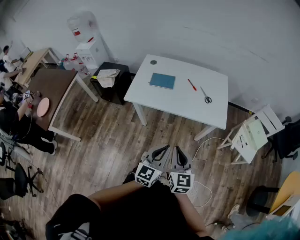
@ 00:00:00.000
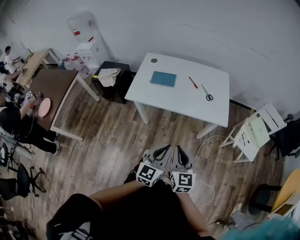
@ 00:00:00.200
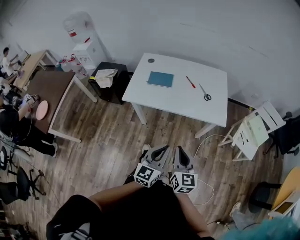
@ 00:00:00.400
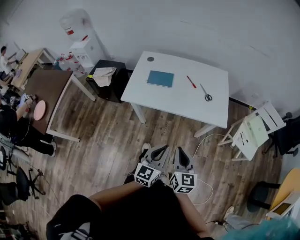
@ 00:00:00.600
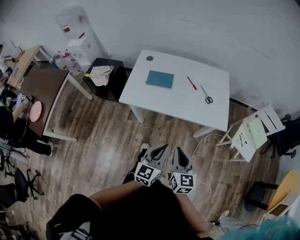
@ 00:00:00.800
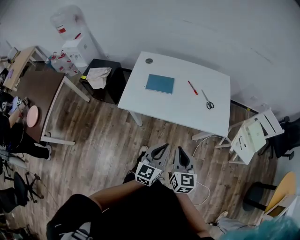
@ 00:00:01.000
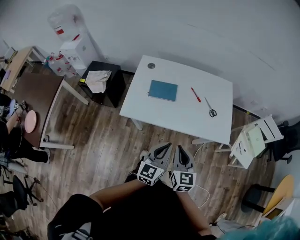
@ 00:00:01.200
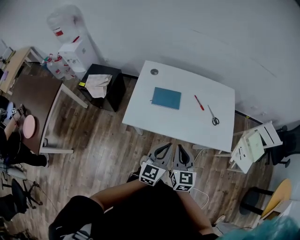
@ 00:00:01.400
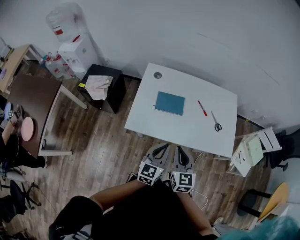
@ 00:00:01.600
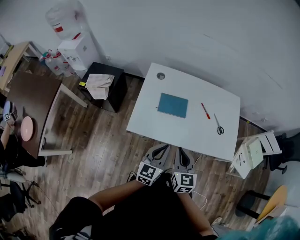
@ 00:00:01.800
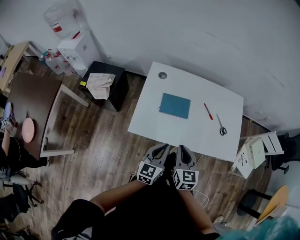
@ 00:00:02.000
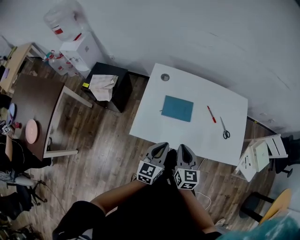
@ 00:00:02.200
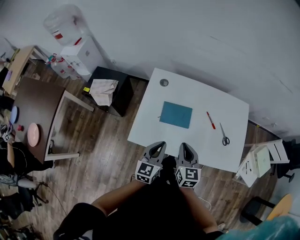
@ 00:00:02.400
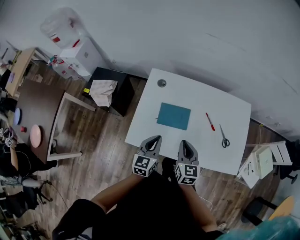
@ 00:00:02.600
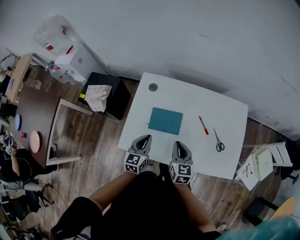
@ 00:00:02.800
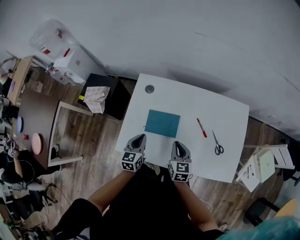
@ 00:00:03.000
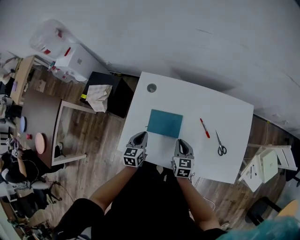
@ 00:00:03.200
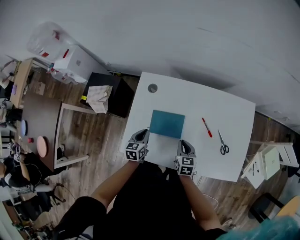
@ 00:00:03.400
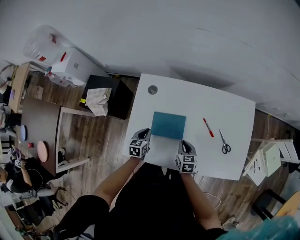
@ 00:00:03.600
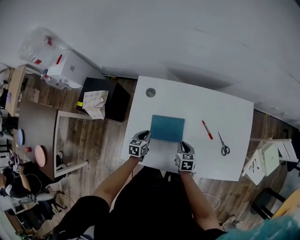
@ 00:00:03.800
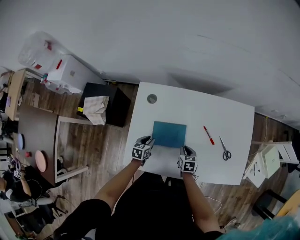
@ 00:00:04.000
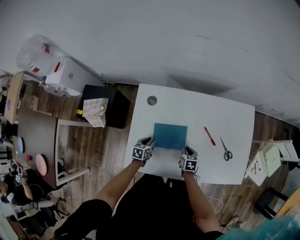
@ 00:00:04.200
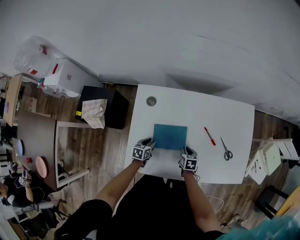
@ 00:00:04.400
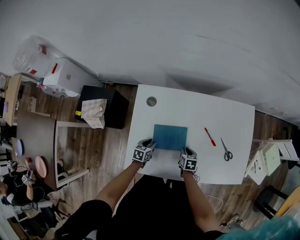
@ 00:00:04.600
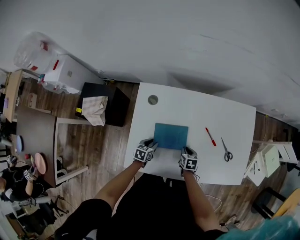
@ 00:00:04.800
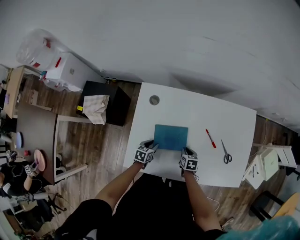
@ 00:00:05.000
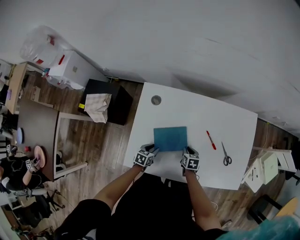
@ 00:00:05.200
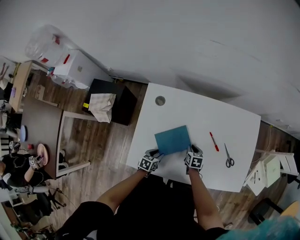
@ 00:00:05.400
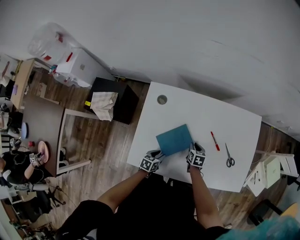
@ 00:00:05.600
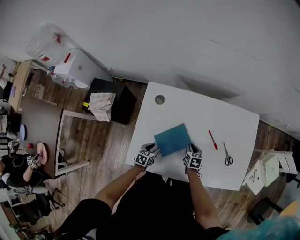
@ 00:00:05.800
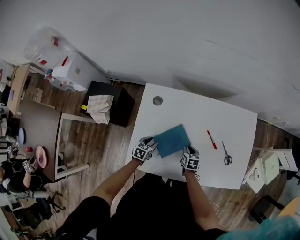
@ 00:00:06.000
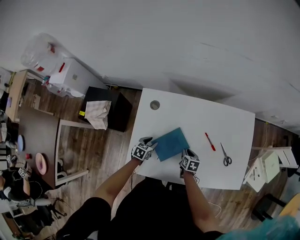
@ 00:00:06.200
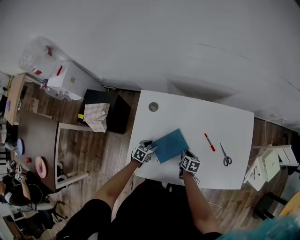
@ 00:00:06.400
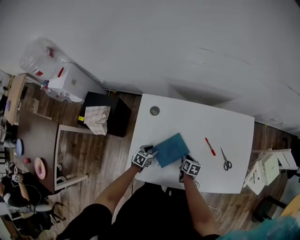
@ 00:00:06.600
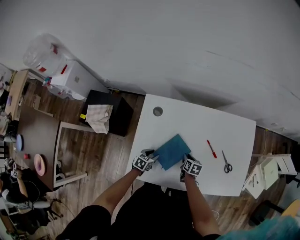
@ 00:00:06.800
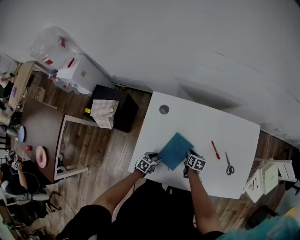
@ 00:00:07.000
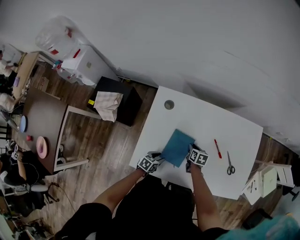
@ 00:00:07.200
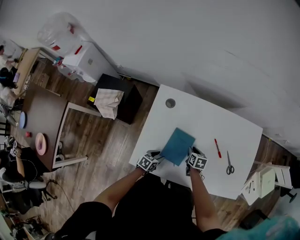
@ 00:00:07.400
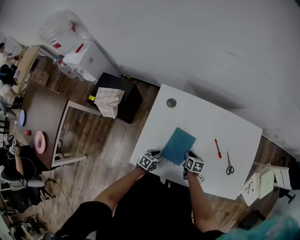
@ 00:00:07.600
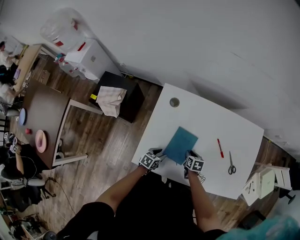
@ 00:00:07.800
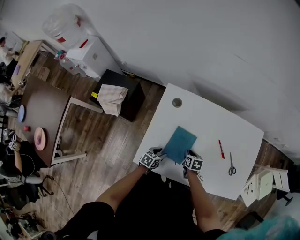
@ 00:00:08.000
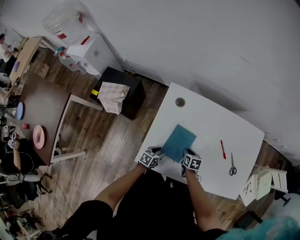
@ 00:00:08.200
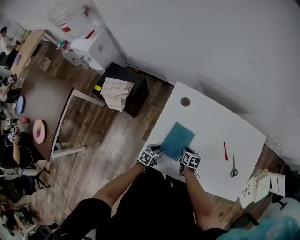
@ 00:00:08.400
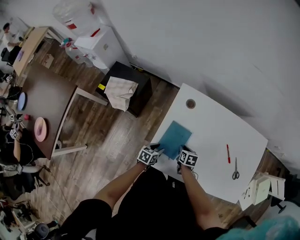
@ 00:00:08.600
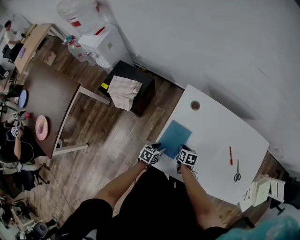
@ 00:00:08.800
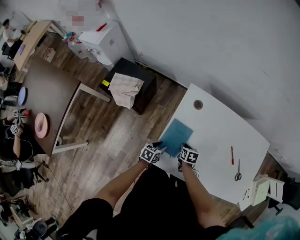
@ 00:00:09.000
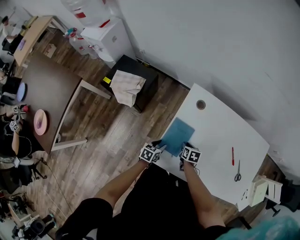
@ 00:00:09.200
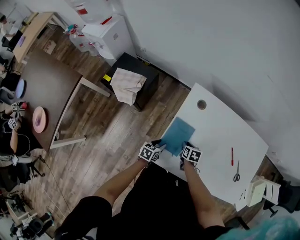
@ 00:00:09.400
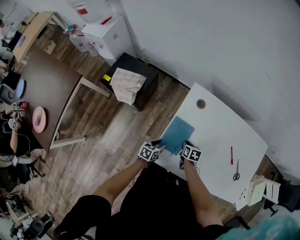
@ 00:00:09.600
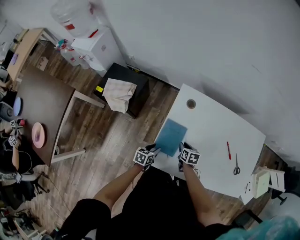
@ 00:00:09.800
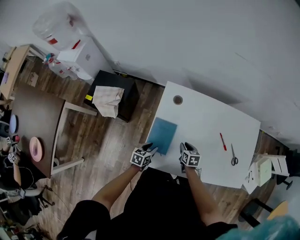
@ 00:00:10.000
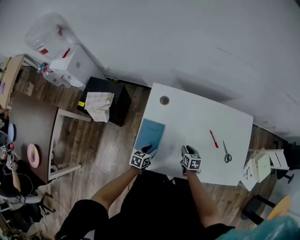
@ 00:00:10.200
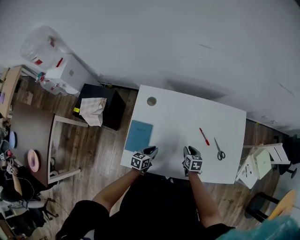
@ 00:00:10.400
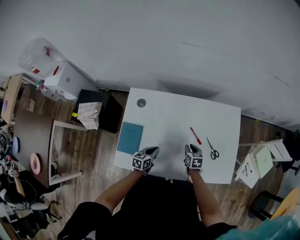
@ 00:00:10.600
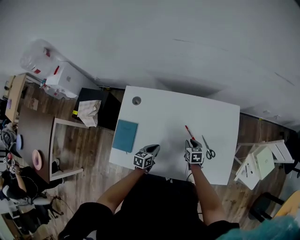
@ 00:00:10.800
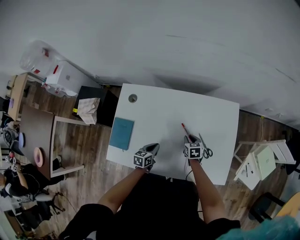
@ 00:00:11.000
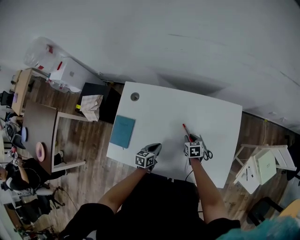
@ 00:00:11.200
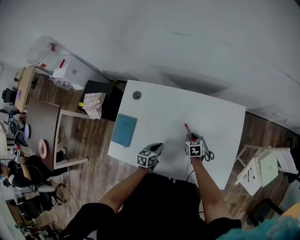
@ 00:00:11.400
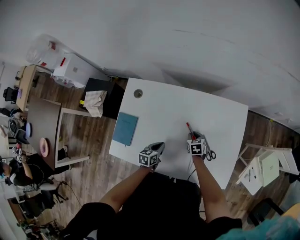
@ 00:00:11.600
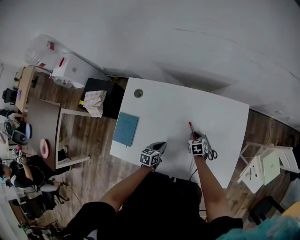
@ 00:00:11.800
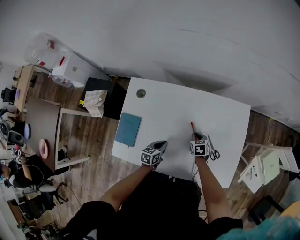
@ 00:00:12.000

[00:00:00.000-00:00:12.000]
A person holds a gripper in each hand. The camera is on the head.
00:00:00.000 to 00:00:01.600: The two grippers go roughly 30 cm forward and to the left.
00:00:01.600 to 00:00:03.000: Both grippers travel together forward and downward, some 25 cm. The left gripper rotates roughly 20 degrees.
00:00:03.000 to 00:00:04.400: The two grippers go roughly 20 cm downward. The right gripper rotates about 30 degrees; the left gripper turns by approximately 30 degrees, and opens up.
00:00:04.400 to 00:00:06.000: The left gripper reaches some 10 cm backward, then returns.
00:00:06.000 to 00:00:07.600: The left gripper moves backward, about 10 cm.
00:00:07.600 to 00:00:09.000: Both grippers move to the left, approximately 15 cm.
00:00:09.000 to 00:00:10.400: The left gripper moves to the right, about 15 cm, and closes; the right gripper moves to the right, approximately 25 cm.
00:00:10.400 to 00:00:12.000: The left gripper heads to the right, covering approximately 15 cm. Meanwhile the right gripper travels to the right, forward and downward by roughly 15 cm.

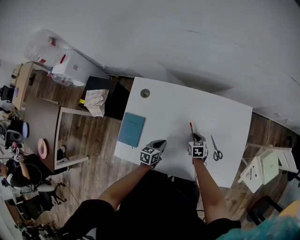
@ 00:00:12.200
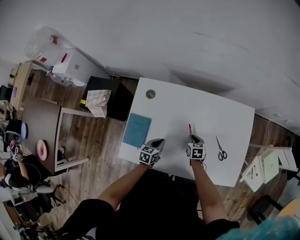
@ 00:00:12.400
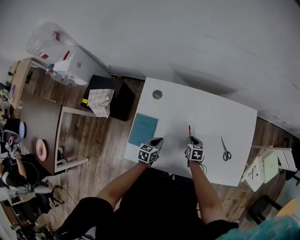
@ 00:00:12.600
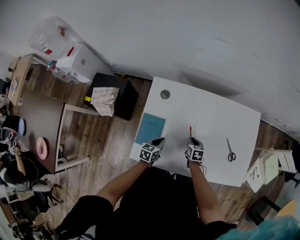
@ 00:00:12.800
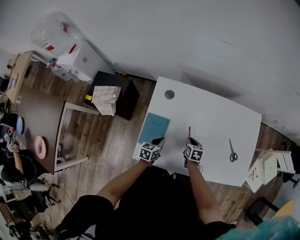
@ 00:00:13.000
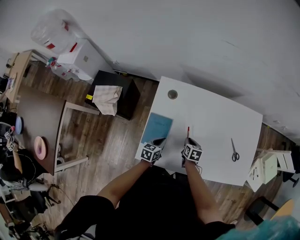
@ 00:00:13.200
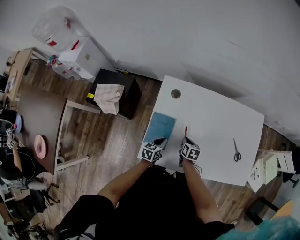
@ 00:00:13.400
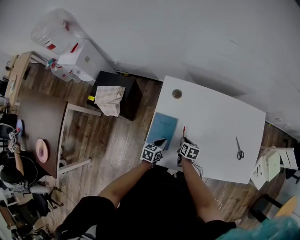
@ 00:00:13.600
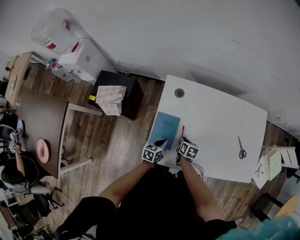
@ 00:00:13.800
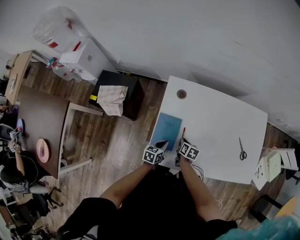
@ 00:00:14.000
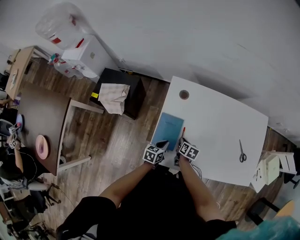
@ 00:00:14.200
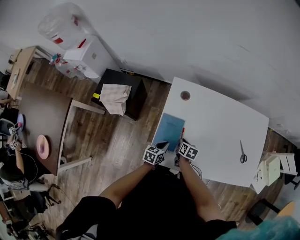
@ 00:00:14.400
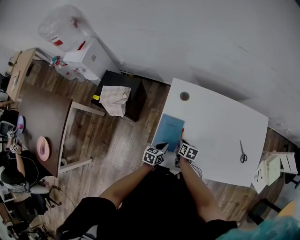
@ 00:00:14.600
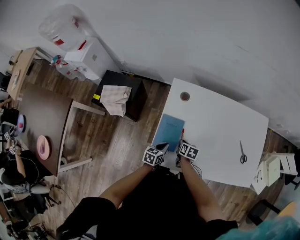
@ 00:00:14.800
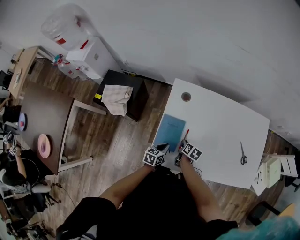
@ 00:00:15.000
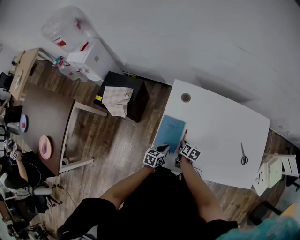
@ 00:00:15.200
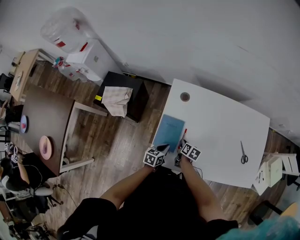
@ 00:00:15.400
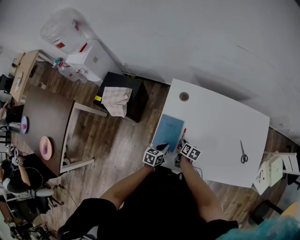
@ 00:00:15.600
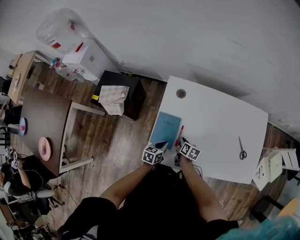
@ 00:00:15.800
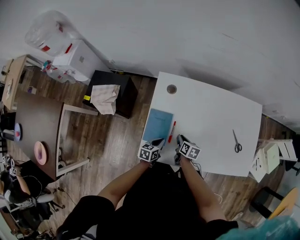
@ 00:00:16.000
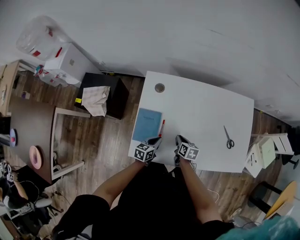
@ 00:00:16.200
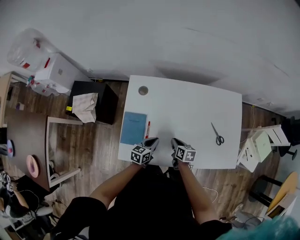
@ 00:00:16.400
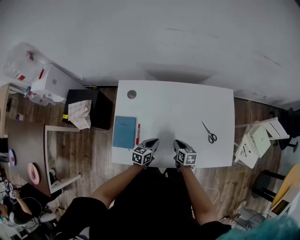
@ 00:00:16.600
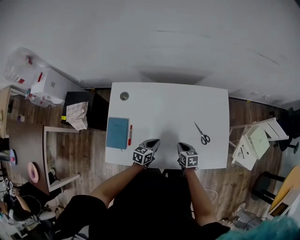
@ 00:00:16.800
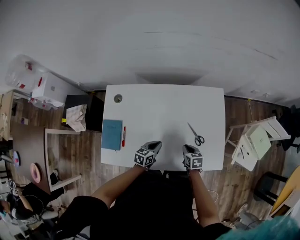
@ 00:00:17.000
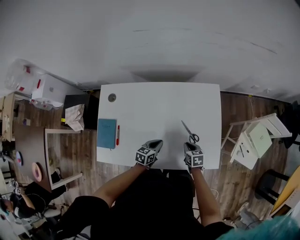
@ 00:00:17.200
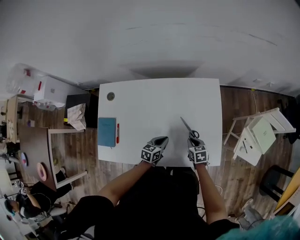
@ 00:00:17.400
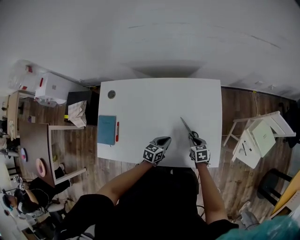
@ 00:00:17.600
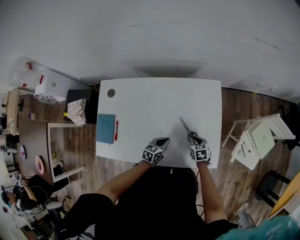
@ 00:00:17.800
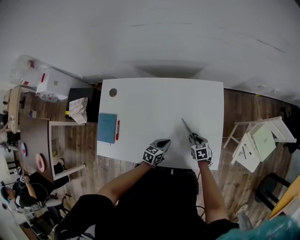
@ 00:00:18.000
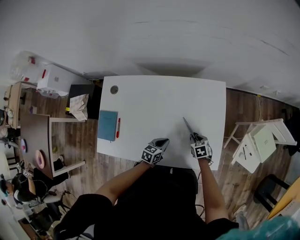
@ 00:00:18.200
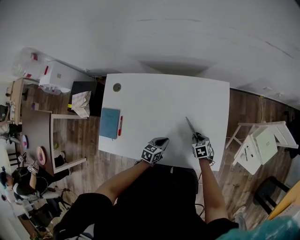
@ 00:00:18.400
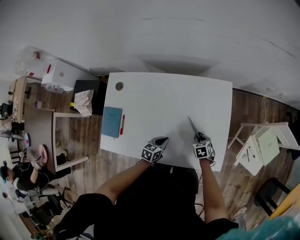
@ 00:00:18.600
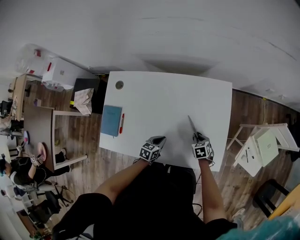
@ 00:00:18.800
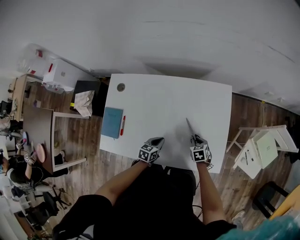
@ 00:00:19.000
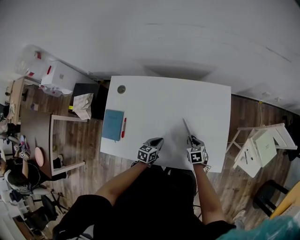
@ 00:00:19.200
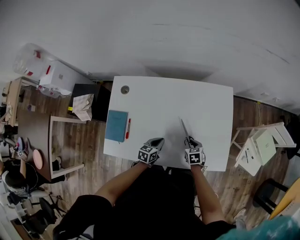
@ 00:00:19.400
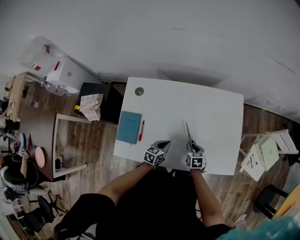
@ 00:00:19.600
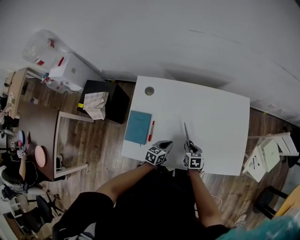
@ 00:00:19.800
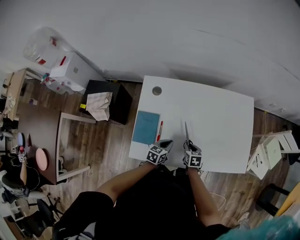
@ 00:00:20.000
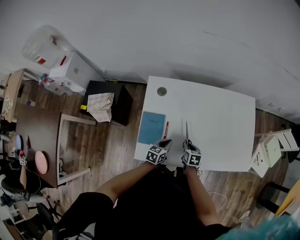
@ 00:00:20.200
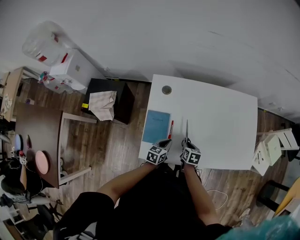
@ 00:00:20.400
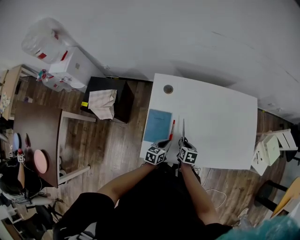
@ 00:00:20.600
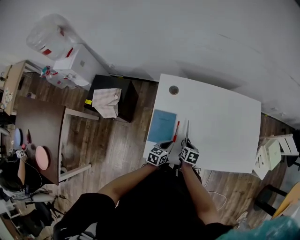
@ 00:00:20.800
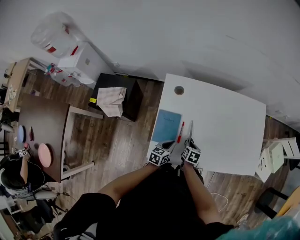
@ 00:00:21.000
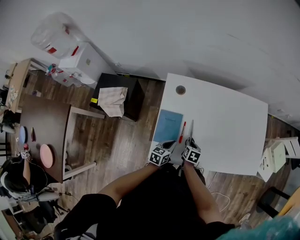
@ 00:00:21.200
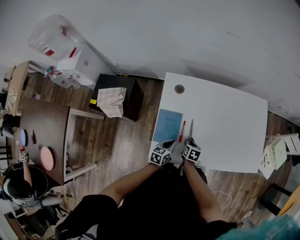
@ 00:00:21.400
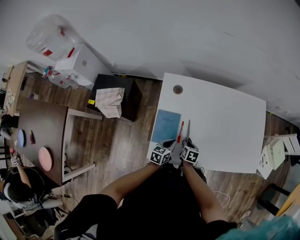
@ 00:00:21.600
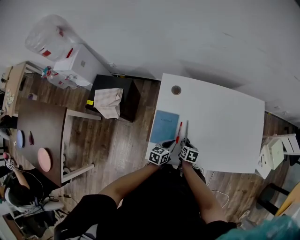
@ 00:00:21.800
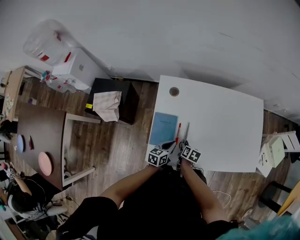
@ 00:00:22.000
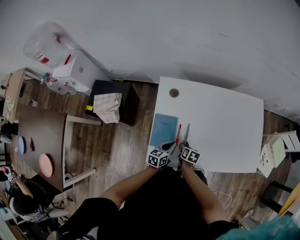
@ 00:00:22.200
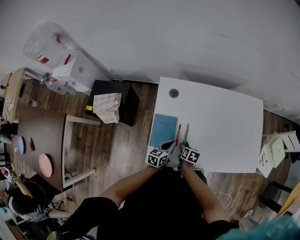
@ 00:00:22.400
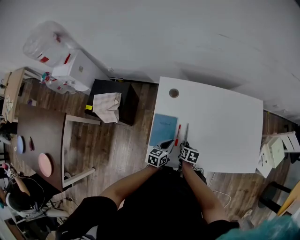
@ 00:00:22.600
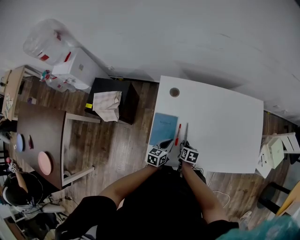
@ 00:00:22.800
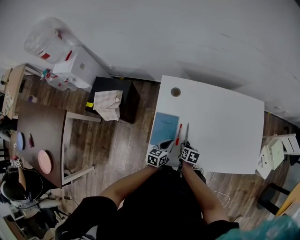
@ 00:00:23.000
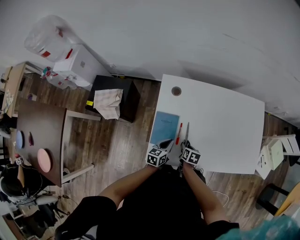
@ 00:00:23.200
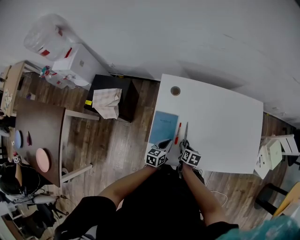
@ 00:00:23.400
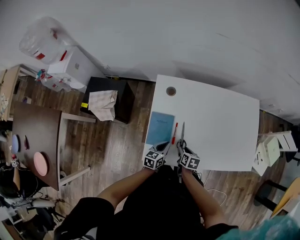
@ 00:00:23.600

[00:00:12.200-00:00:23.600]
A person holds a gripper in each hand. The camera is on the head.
00:00:12.200 to 00:00:13.600: The grippers both shift to the left by roughly 20 cm. The right gripper changes its angle by some 20 degrees.
00:00:13.600 to 00:00:15.000: The grippers make only small movements.
00:00:15.000 to 00:00:16.400: The left gripper is displaced to the right by some 15 cm. Meanwhile the right gripper travels to the right and upward by some 15 cm.
00:00:16.400 to 00:00:17.800: Both grippers travel together to the right, roughly 30 cm. The right gripper rotates about 30 degrees.
00:00:17.800 to 00:00:19.400: The two grippers go approximately 10 cm to the left.
00:00:19.400 to 00:00:20.800: The grippers both shift to the left by roughly 30 cm. The right gripper rotates roughly 20 degrees.
00:00:20.800 to 00:00:23.600: There are only small adjustments of the grippers.
